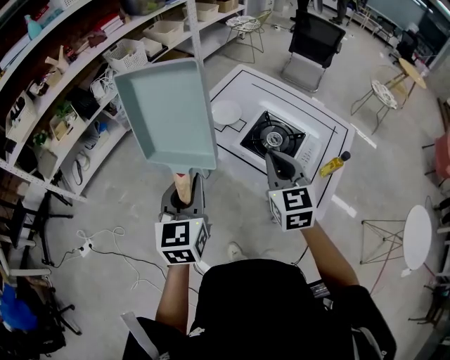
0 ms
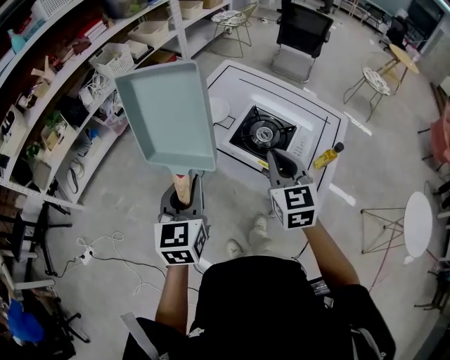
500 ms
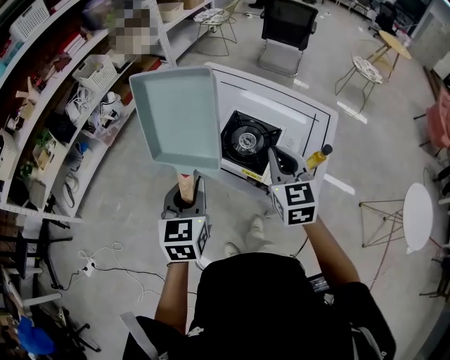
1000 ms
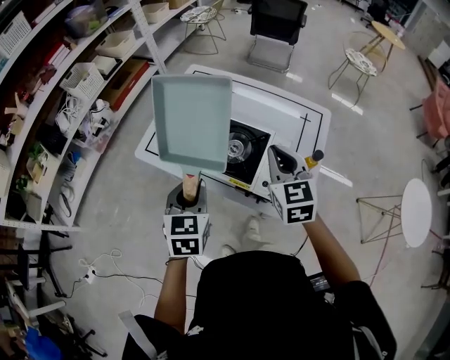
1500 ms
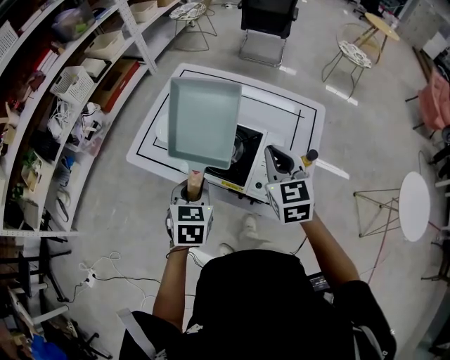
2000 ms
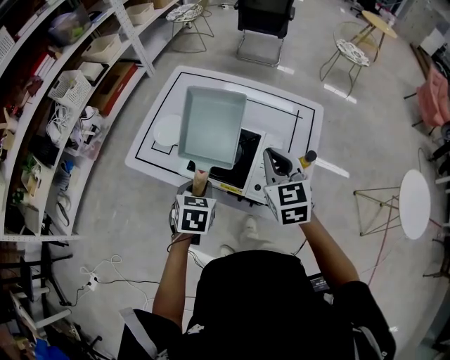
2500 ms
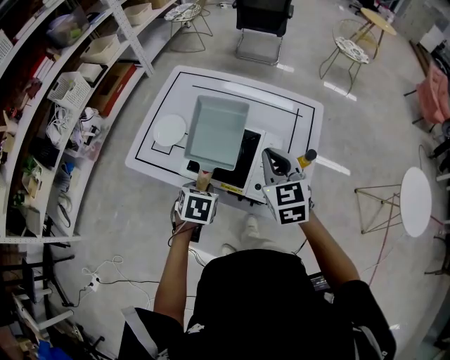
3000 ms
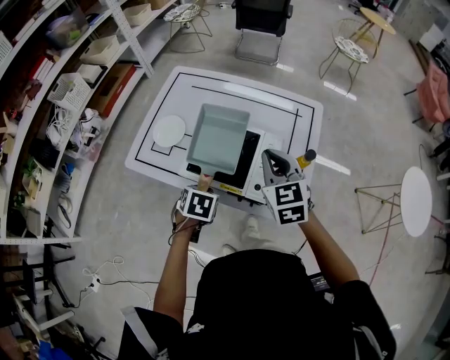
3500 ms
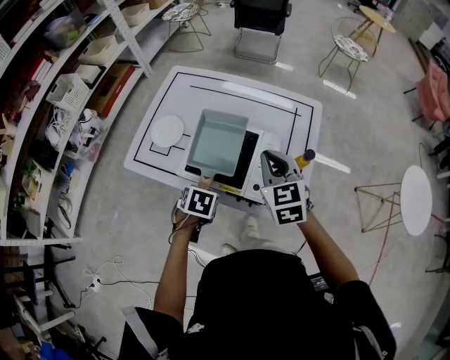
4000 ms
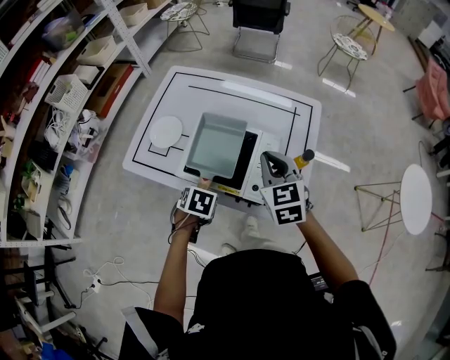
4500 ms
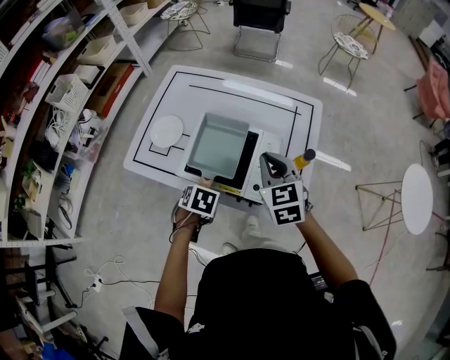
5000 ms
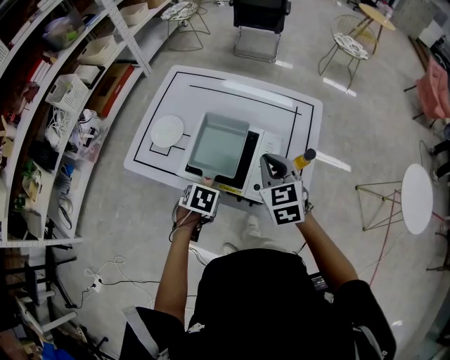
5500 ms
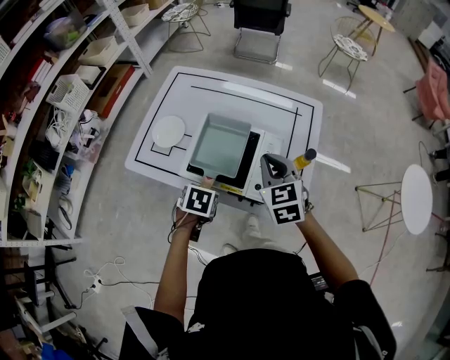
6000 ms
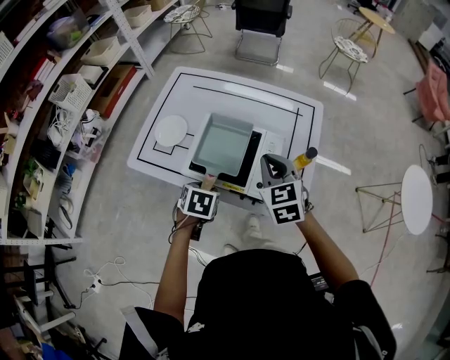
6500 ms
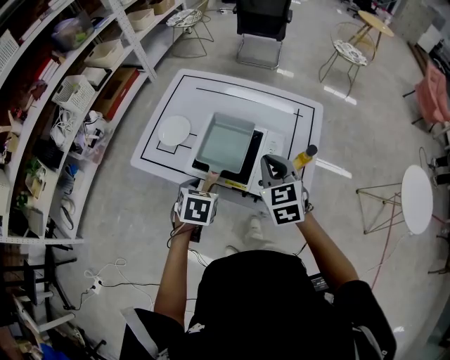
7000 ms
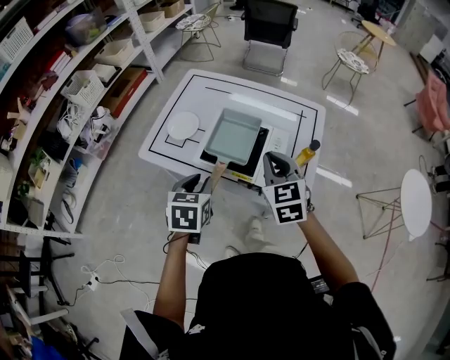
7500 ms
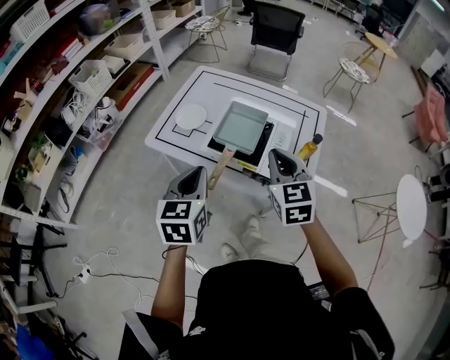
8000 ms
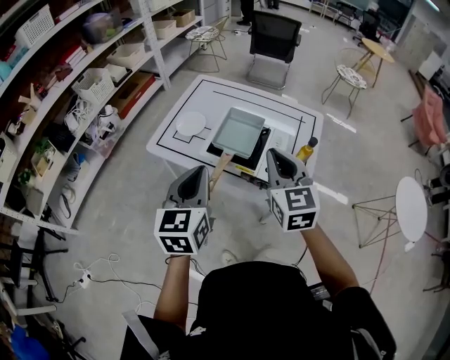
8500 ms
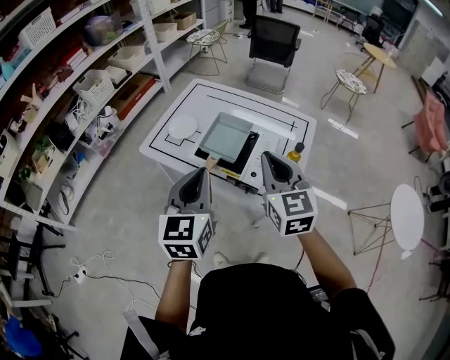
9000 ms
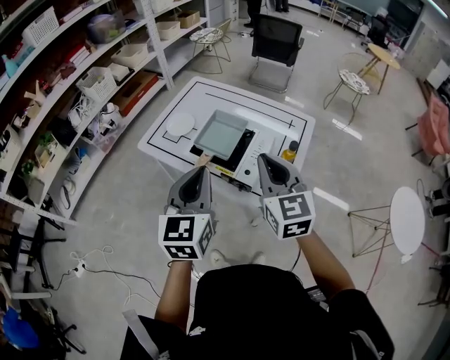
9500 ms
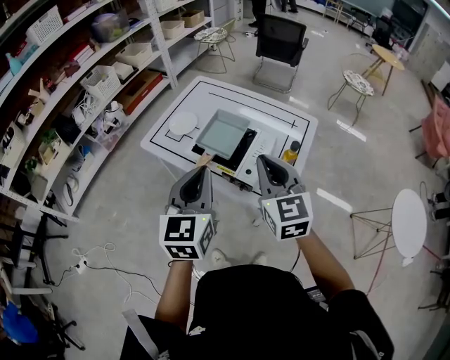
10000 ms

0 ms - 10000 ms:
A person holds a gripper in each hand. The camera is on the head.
0 ms - 2000 ms: The left gripper shifts about 25 cm to the right, forward and downward, and turns by roughly 30 degrees, while the right gripper moves to the right and forward, approximately 20 cm.
2000 ms - 4000 ms: The left gripper heads downward, covering some 15 cm, and tilts its fingers roughly 30 degrees downward.
4000 ms - 6000 ms: The grippers make only small movements.
6000 ms - 8000 ms: The right gripper is displaced backward and upward by roughly 15 cm, while the left gripper shifts some 25 cm upward and backward, angles its fingers upward, by some 50 degrees, and closes its fingers.
8000 ms - 10000 ms: The left gripper travels to the right and upward by some 15 cm. Meanwhile the right gripper moves upward and to the right, some 10 cm.

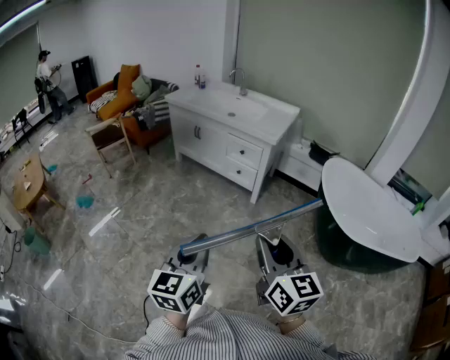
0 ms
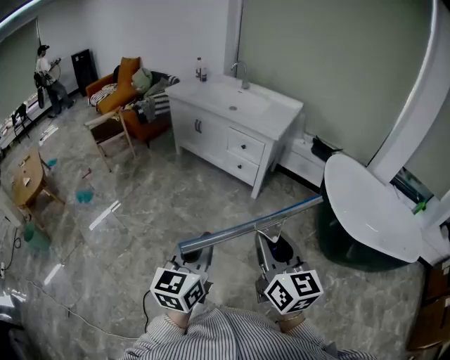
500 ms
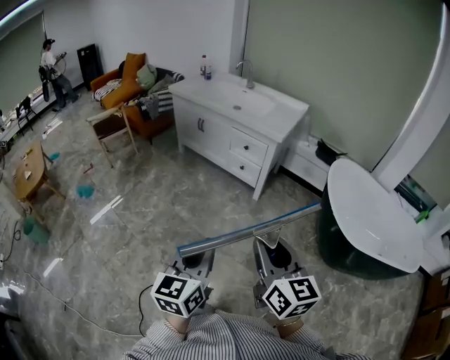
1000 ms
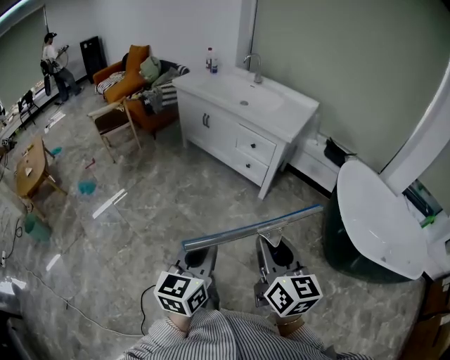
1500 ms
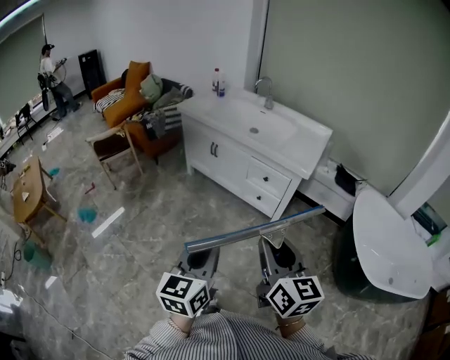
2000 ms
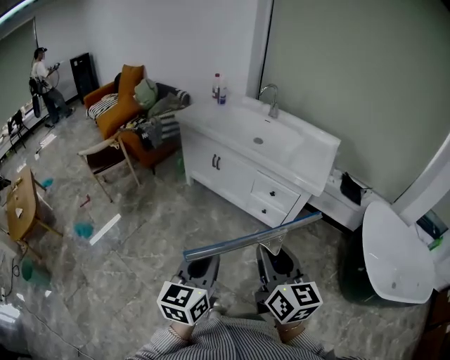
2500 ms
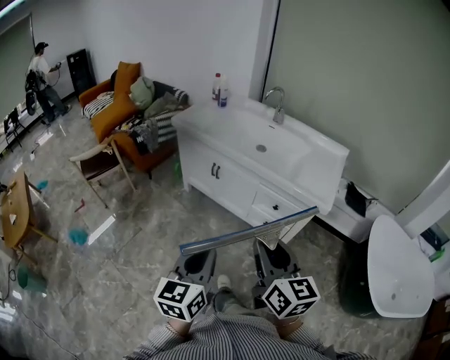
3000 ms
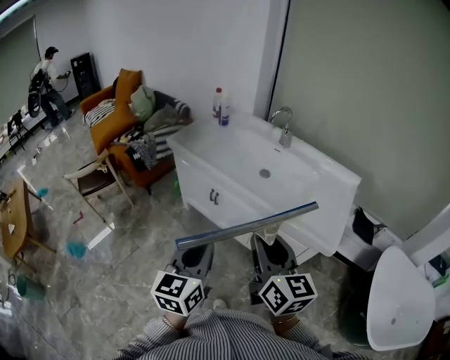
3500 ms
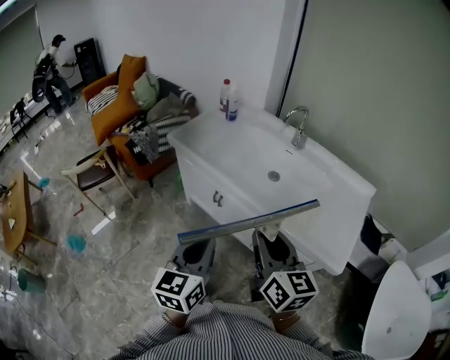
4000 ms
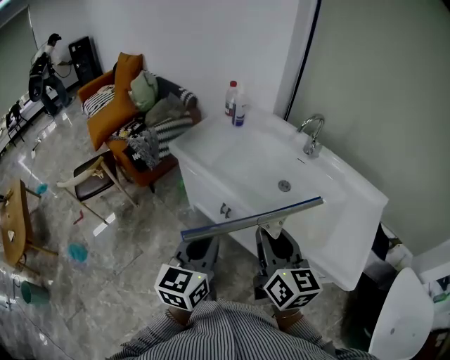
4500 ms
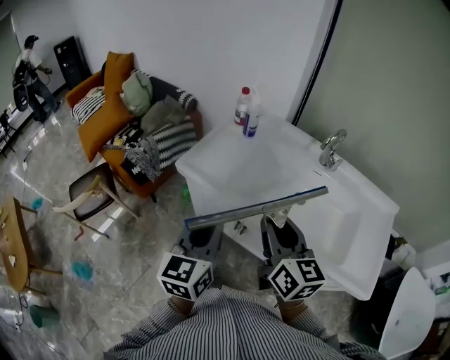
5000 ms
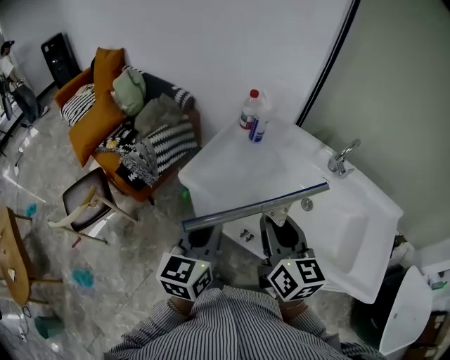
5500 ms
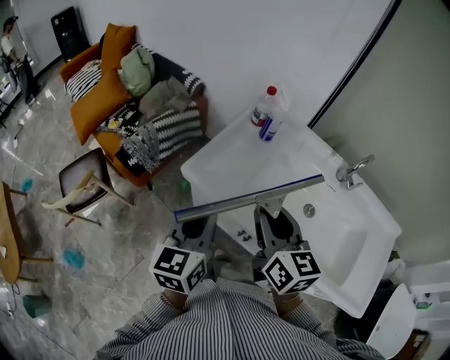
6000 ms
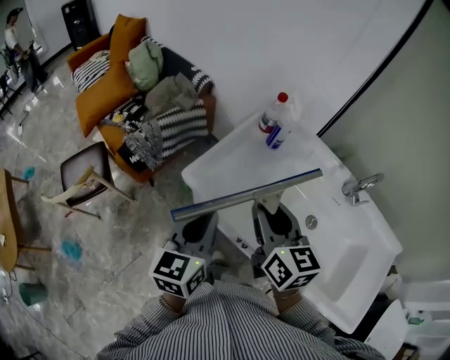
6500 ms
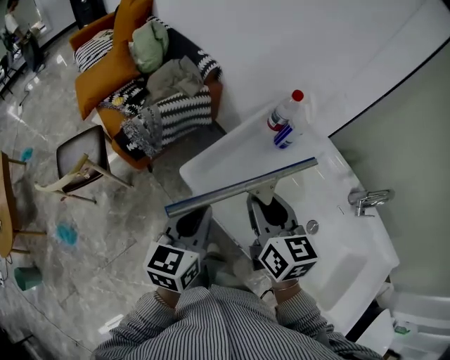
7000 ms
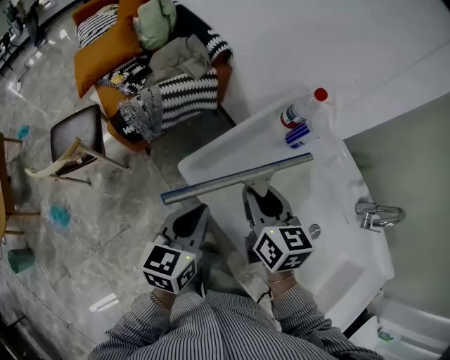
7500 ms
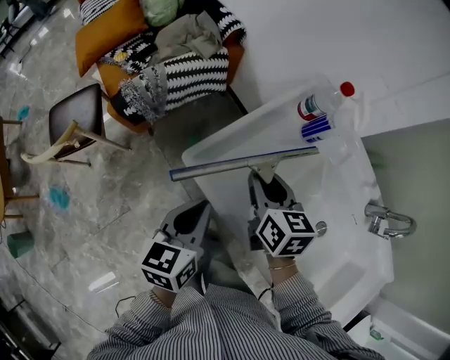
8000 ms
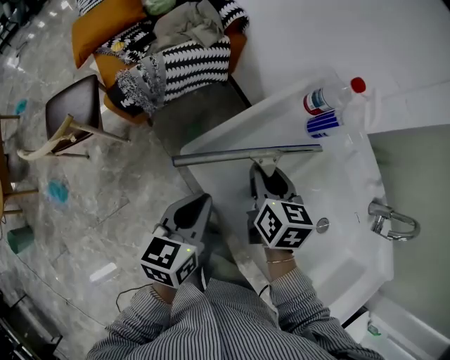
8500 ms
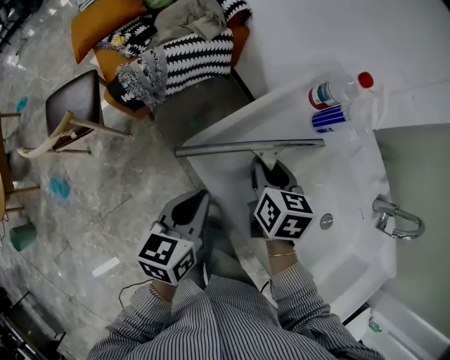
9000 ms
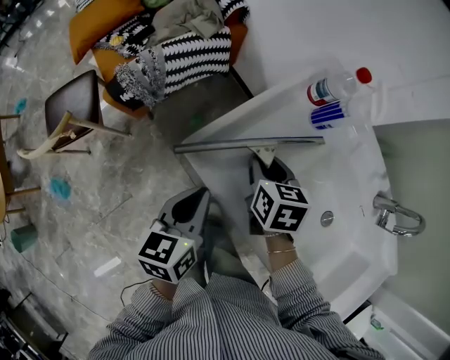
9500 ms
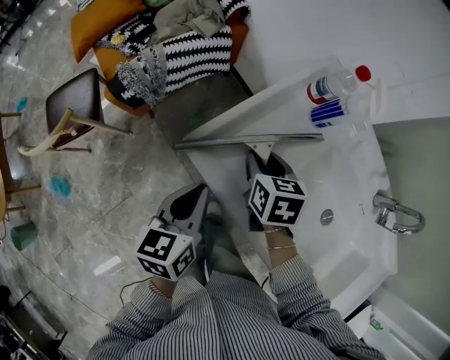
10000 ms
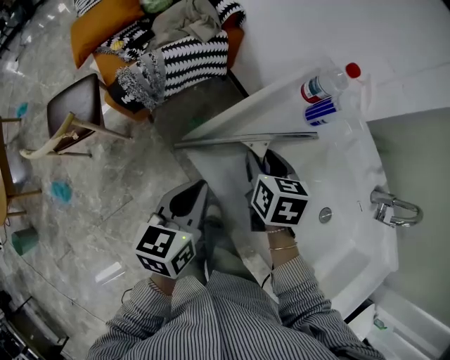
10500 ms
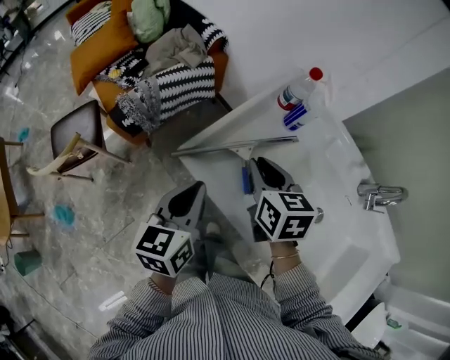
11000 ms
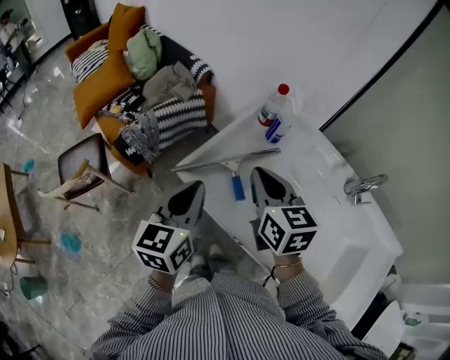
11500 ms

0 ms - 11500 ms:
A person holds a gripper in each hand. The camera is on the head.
0 ms - 2000 ms: The grippers both shift forward by about 25 cm.
2000 ms - 4000 ms: The two grippers travel together, forward, about 50 cm.
4000 ms - 6000 ms: The pair of grippers is taken forward and to the left, approximately 40 cm.
6000 ms - 7500 ms: The right gripper heads forward and downward, covering about 20 cm, and rotates roughly 20 degrees. Meanwhile the left gripper travels downward and forward by roughly 15 cm.
7500 ms - 9500 ms: The right gripper is displaced downward by roughly 10 cm, and changes its angle by roughly 20 degrees. The left gripper heads downward, covering some 5 cm.
9500 ms - 11500 ms: The grippers both shift upward by approximately 20 cm. The left gripper swivels approximately 20 degrees. Meanwhile the right gripper swivels about 30 degrees, and closes its fingers.

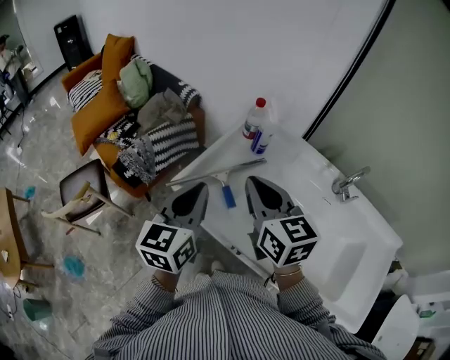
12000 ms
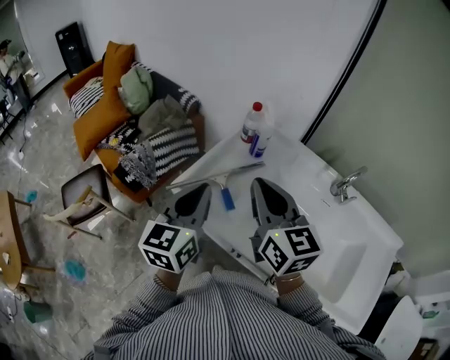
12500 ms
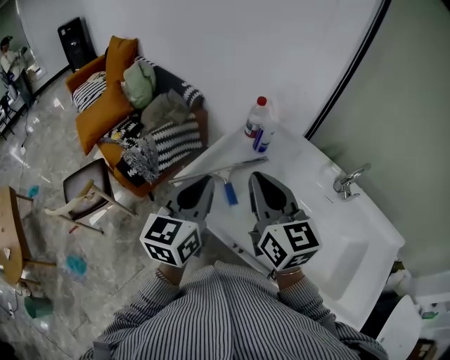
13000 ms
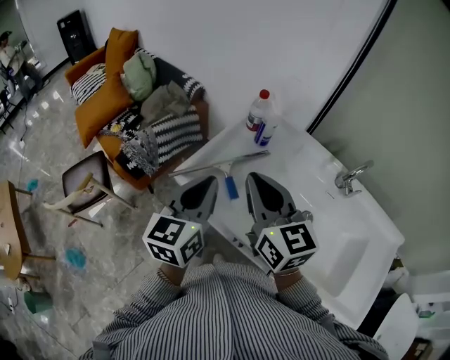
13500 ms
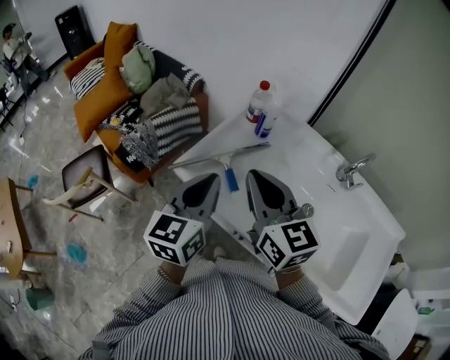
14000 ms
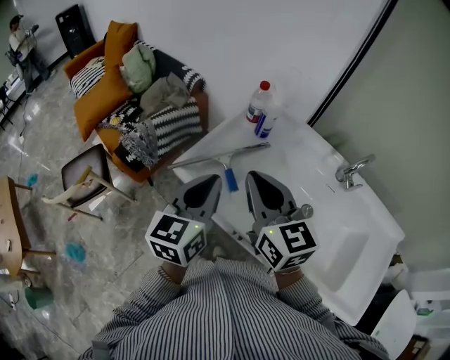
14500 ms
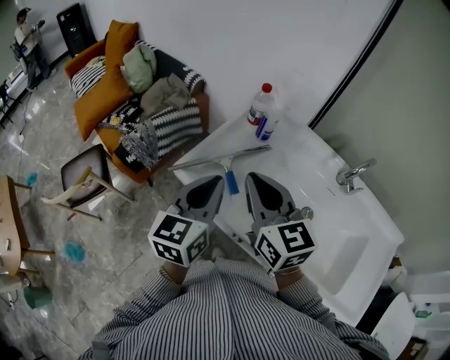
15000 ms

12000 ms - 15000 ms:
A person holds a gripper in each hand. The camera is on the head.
12000 ms - 15000 ms: The grippers move only a little.

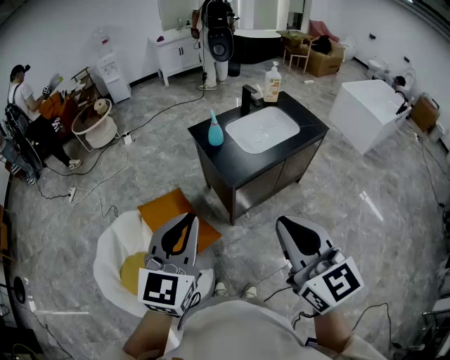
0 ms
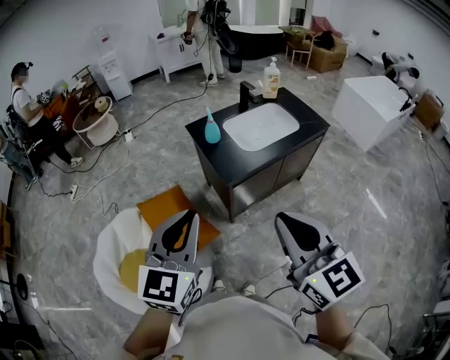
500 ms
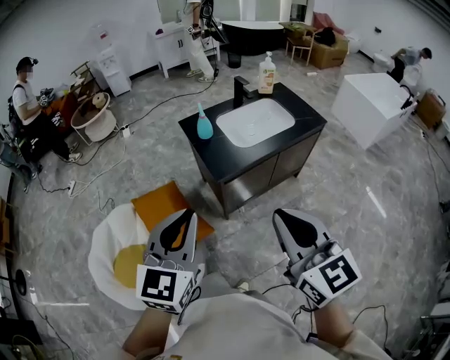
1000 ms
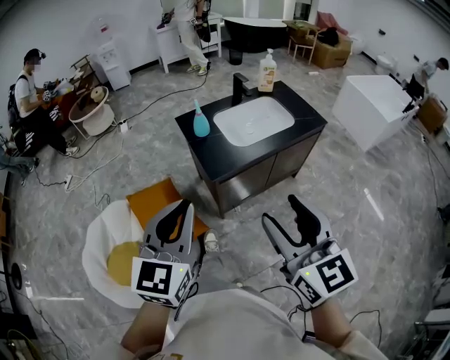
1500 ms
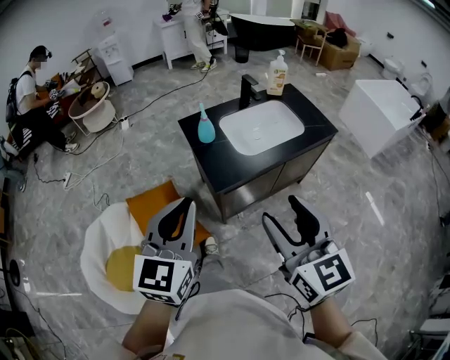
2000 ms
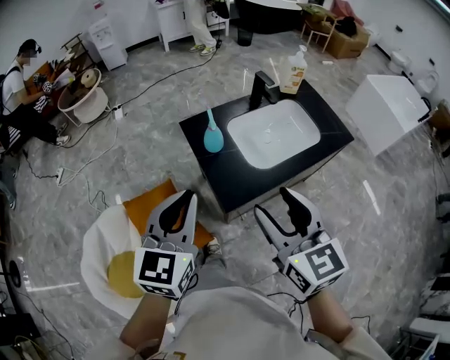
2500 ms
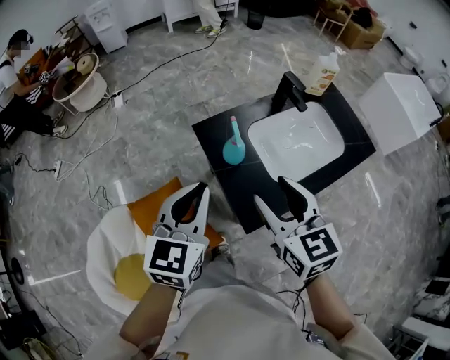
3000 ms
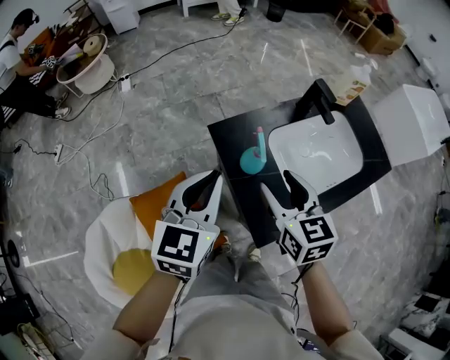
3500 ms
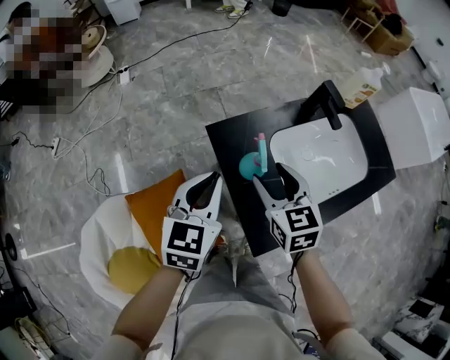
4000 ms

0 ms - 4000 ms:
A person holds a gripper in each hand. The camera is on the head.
0 ms - 2000 ms: The left gripper goes approximately 15 cm forward and to the right. The right gripper goes some 15 cm forward, to the right and downward, and opens up.
2000 ms - 4000 ms: The two grippers travel together, forward, about 50 cm. Both grippers move downward, about 20 cm. The right gripper swivels some 20 degrees.
